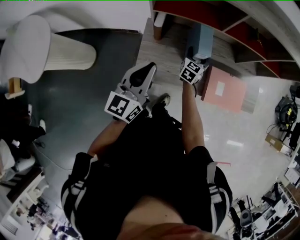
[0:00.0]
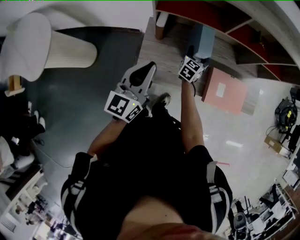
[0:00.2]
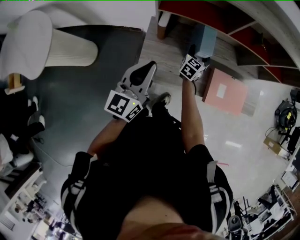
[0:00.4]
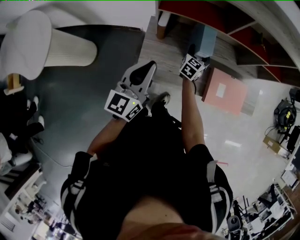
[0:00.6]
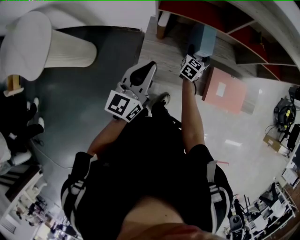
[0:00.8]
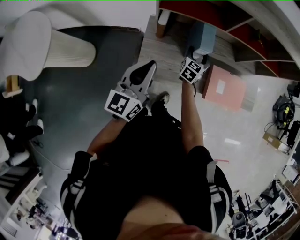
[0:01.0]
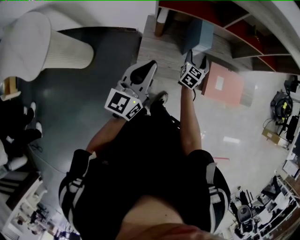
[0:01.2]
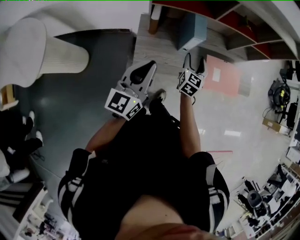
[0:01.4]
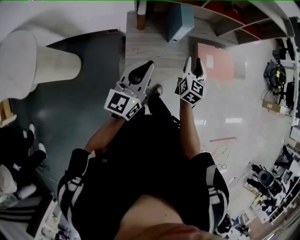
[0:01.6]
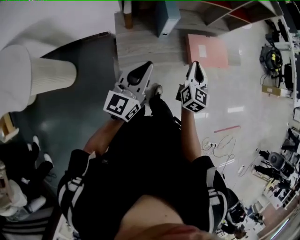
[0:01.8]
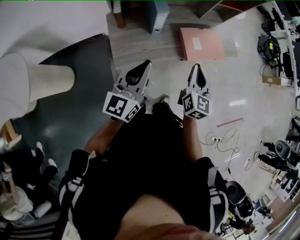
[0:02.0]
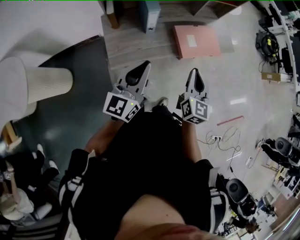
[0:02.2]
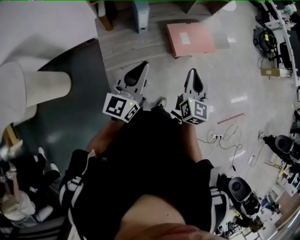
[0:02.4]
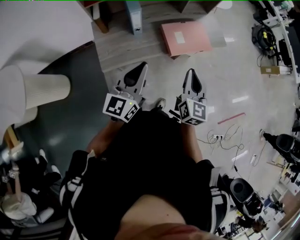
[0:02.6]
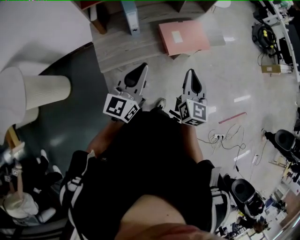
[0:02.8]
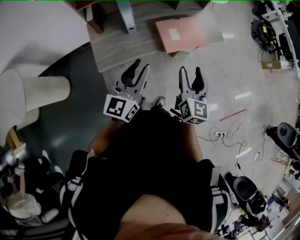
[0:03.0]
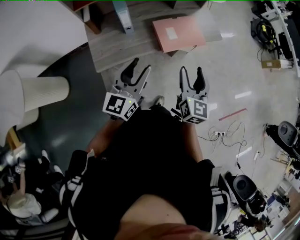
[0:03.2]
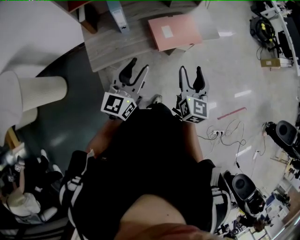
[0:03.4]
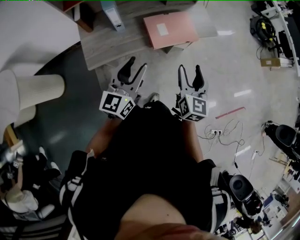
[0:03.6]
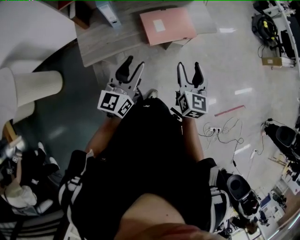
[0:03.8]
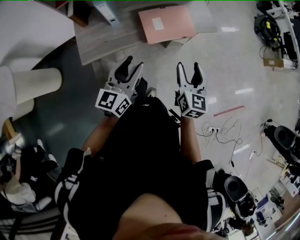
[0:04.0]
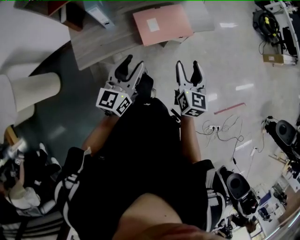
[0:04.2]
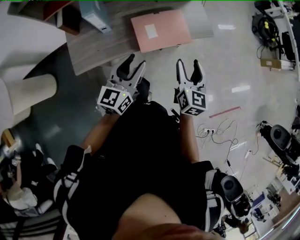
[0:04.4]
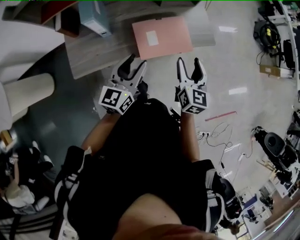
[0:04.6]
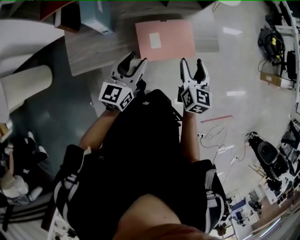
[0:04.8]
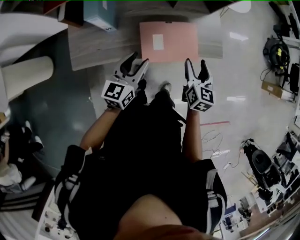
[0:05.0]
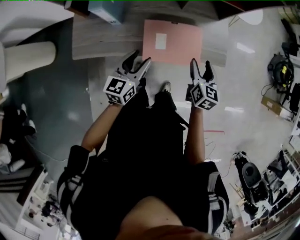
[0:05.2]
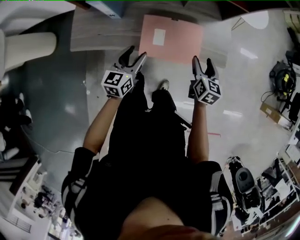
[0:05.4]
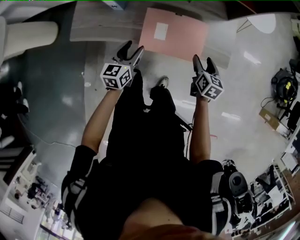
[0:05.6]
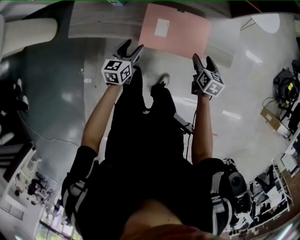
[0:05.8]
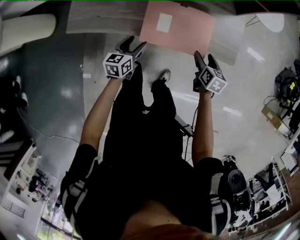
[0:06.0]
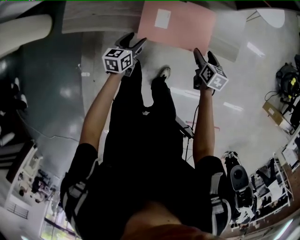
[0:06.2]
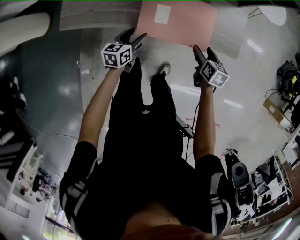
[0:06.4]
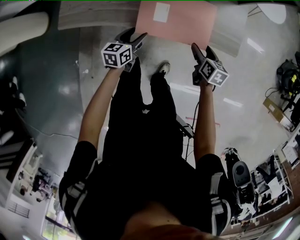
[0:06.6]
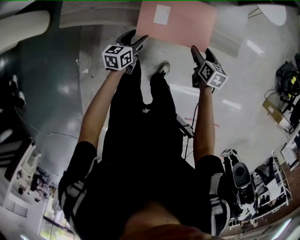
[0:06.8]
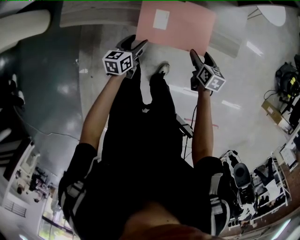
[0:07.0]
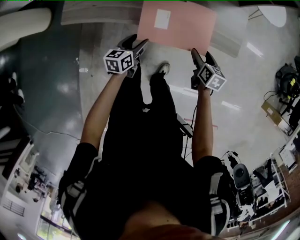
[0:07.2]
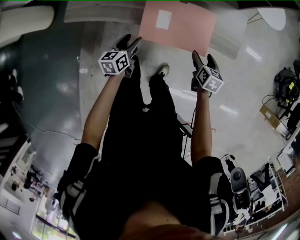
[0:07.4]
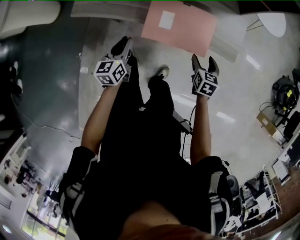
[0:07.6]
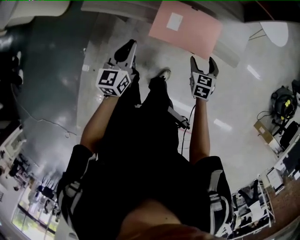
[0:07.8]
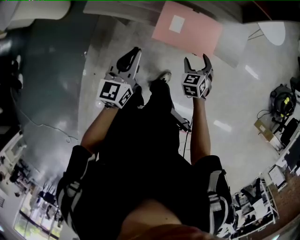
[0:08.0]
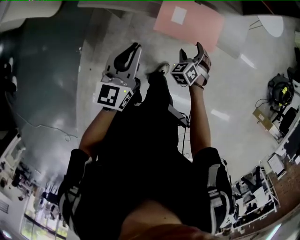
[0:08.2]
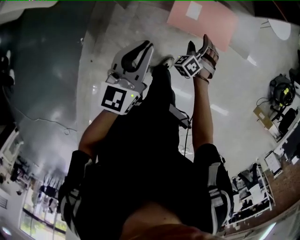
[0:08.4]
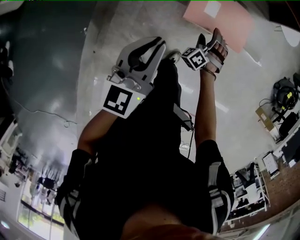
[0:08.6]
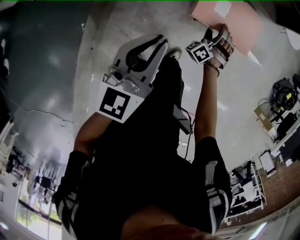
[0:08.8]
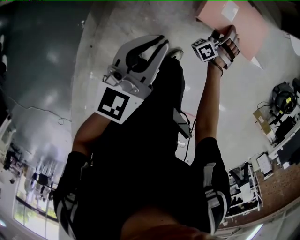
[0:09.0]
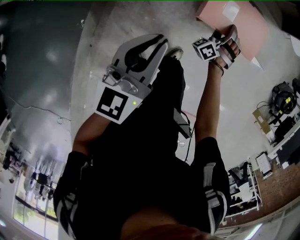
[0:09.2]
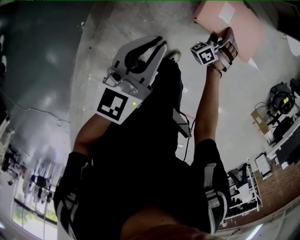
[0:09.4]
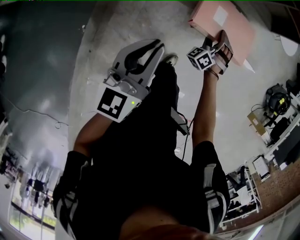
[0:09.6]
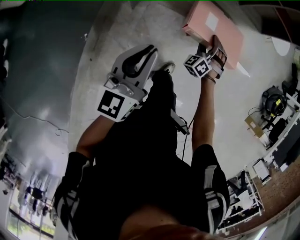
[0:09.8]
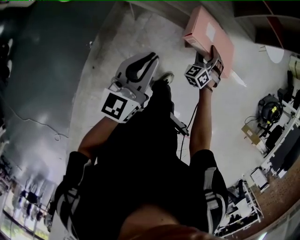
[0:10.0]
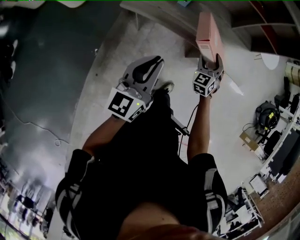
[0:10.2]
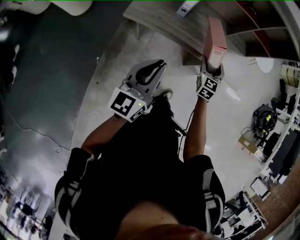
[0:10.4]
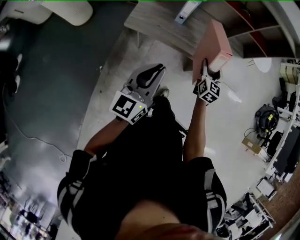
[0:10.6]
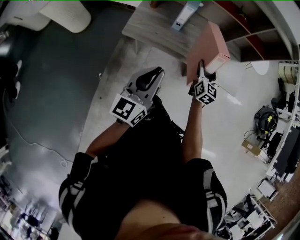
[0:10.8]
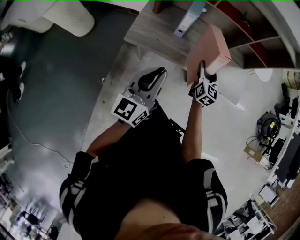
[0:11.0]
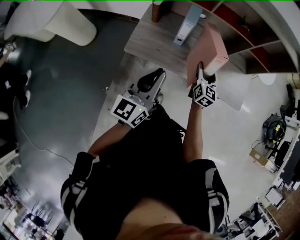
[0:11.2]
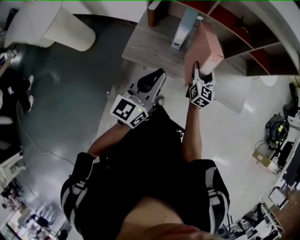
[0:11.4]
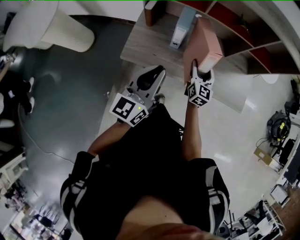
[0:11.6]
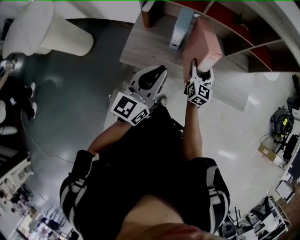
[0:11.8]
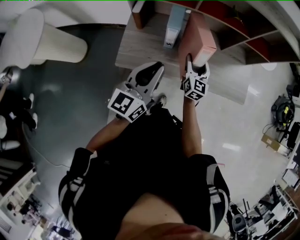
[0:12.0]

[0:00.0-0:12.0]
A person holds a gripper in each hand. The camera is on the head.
0.0 to 1.6 s: The left gripper moves backward, some 5 cm. The right gripper shifts some 20 cm backward and upward, and closes.
1.6 to 3.0 s: The left gripper heads to the right, covering some 20 cm; the right gripper goes some 25 cm to the right, backward and upward, and closes, then reopens.
3.0 to 4.4 s: Both grippers move to the right, forward and downward, roughly 15 cm.
4.4 to 6.0 s: The two grippers go some 25 cm downward. The right gripper rotates approximately 40 degrees. Meanwhile the left gripper turns by approximately 40 degrees.
6.0 to 7.6 s: The left gripper moves backward and upward, approximately 10 cm, and closes.
7.6 to 9.0 s: The right gripper heads to the left and downward, covering about 15 cm, and rolls counterclockwise, seen from behind, by some 80 degrees. Meanwhile the left gripper moves upward and backward, about 15 cm, and changes its angle by approximately 20 degrees.
9.0 to 10.4 s: The left gripper goes roughly 15 cm upward. The right gripper shifts approximately 25 cm upward, and twists roughly 60 degrees clockwise, seen from behind.
10.4 to 12.0 s: The right gripper is displaced forward and to the left by some 20 cm, and rotates roughly 30 degrees, while the left gripper is displaced forward by approximately 20 cm.

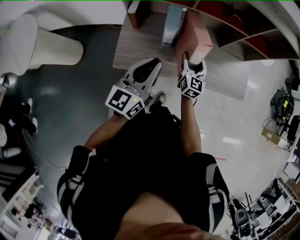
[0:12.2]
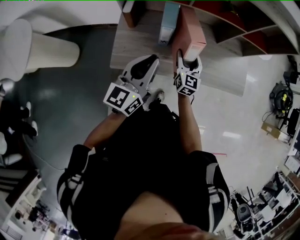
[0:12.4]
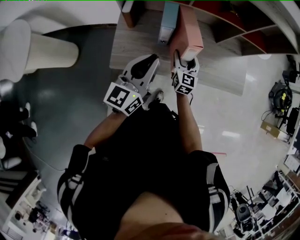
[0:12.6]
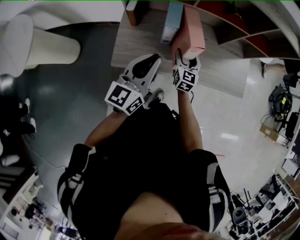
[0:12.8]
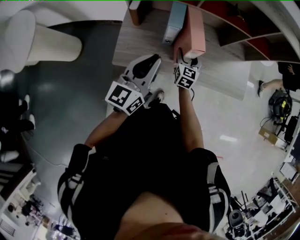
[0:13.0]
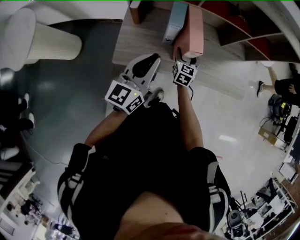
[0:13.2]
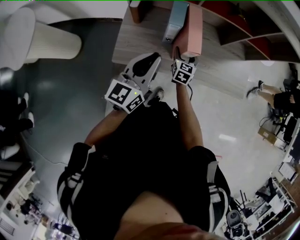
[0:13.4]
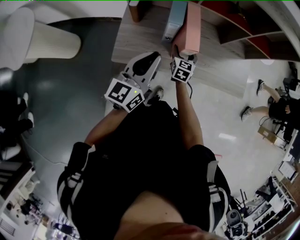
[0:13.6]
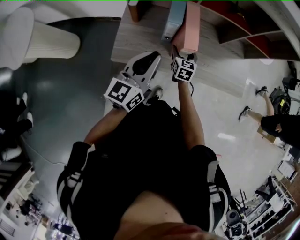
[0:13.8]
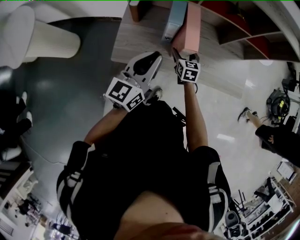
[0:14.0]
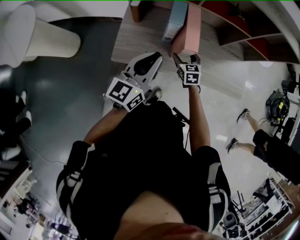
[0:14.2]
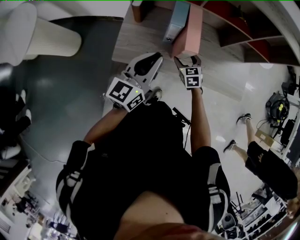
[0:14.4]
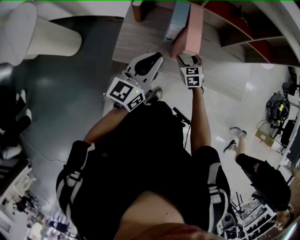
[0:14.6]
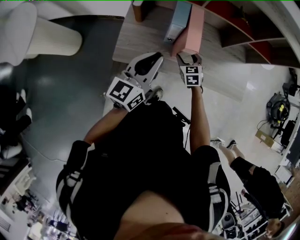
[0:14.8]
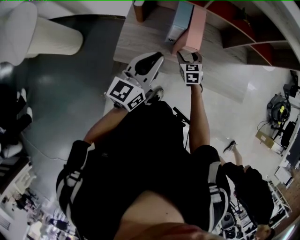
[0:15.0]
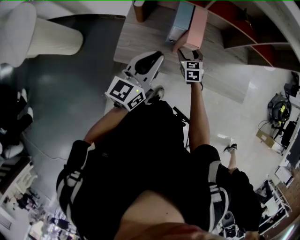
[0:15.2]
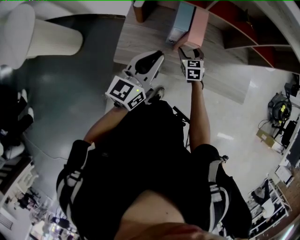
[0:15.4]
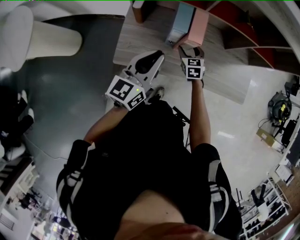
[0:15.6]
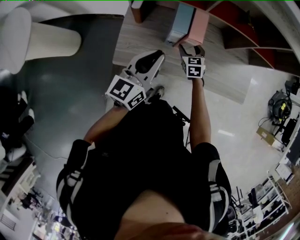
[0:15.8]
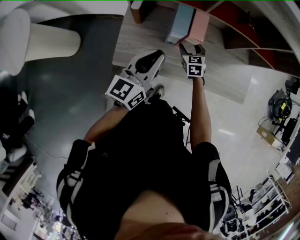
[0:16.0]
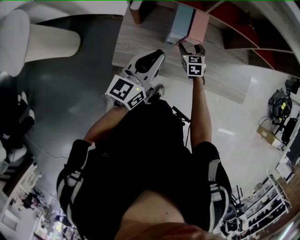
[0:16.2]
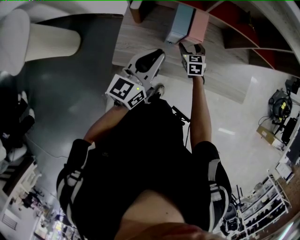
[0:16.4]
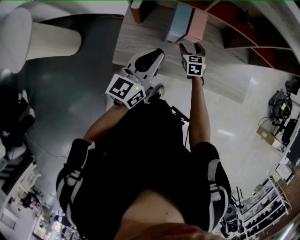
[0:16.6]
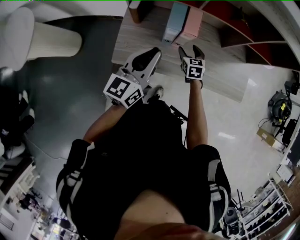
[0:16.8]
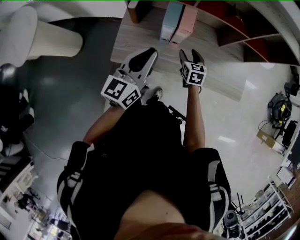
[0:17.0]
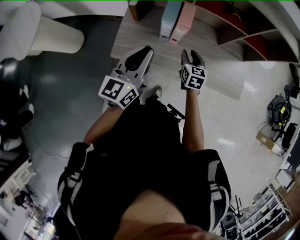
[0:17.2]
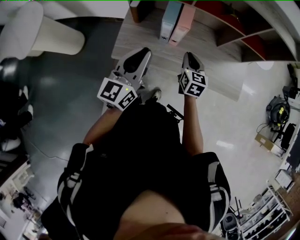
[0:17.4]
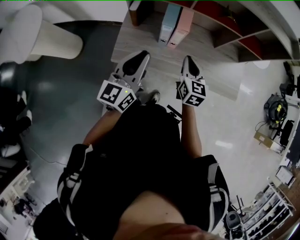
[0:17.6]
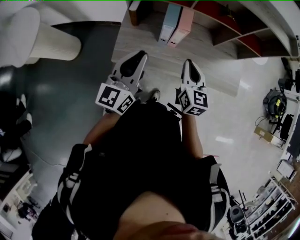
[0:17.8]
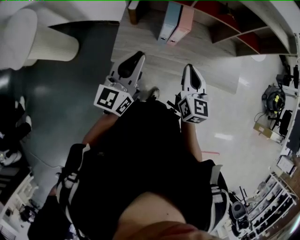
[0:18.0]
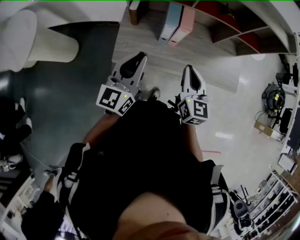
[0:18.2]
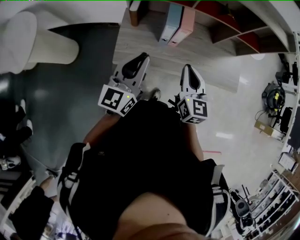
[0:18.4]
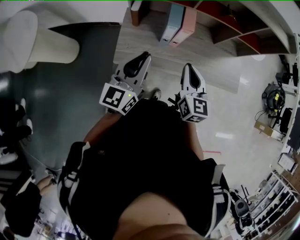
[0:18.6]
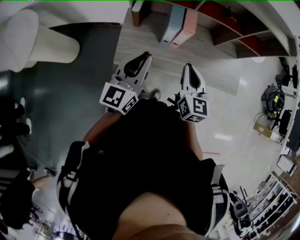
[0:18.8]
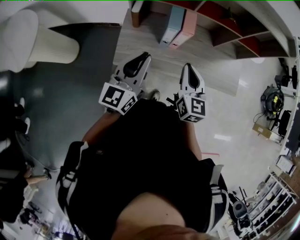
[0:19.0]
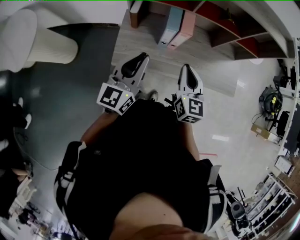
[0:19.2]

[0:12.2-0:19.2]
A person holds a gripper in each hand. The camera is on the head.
12.2 to 13.6 s: The right gripper moves downward, approximately 10 cm.
13.6 to 15.0 s: The right gripper turns by roughly 30 degrees.
15.0 to 16.4 s: Both grippers travel together forward, approximately 5 cm.
16.4 to 17.8 s: The left gripper travels backward and upward by roughly 10 cm, while the right gripper heads upward and backward, covering about 30 cm, changes its angle by about 30 degrees, and closes up.
17.8 to 19.2 s: The grippers make only small movements.

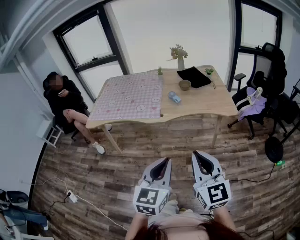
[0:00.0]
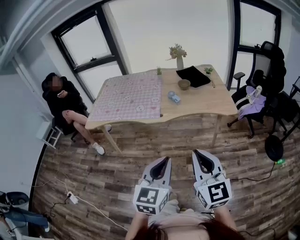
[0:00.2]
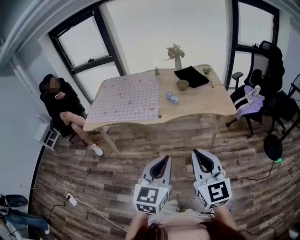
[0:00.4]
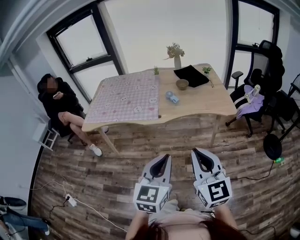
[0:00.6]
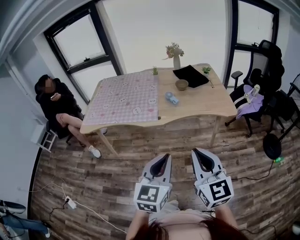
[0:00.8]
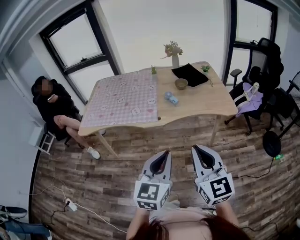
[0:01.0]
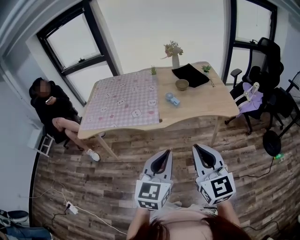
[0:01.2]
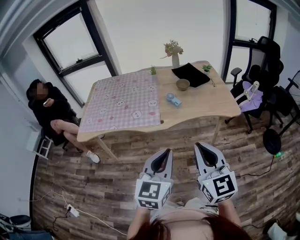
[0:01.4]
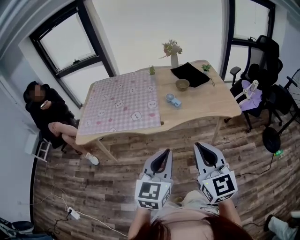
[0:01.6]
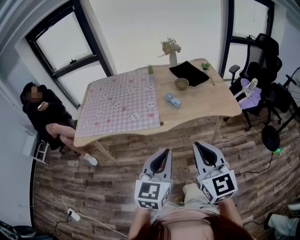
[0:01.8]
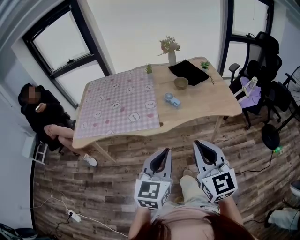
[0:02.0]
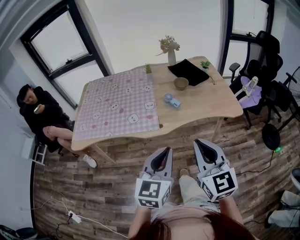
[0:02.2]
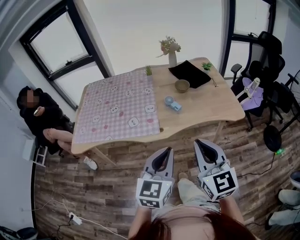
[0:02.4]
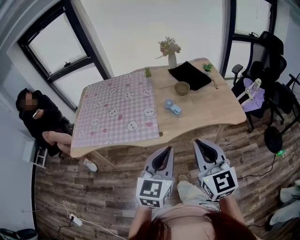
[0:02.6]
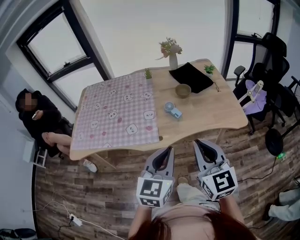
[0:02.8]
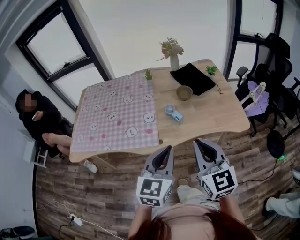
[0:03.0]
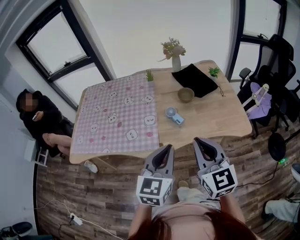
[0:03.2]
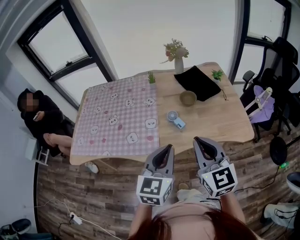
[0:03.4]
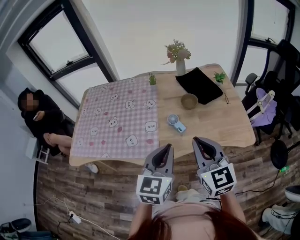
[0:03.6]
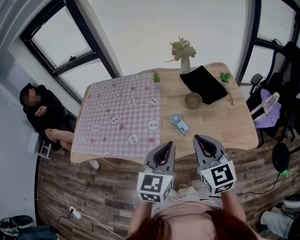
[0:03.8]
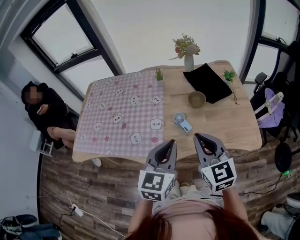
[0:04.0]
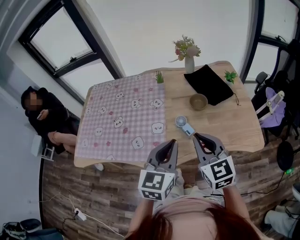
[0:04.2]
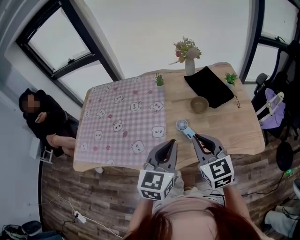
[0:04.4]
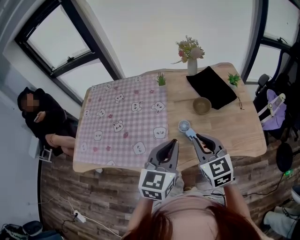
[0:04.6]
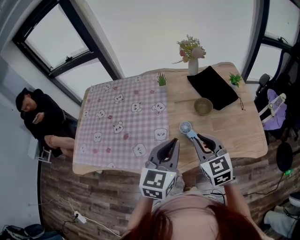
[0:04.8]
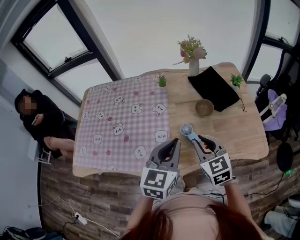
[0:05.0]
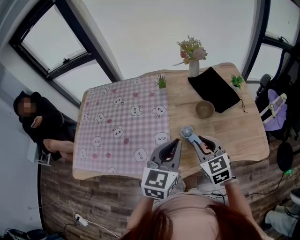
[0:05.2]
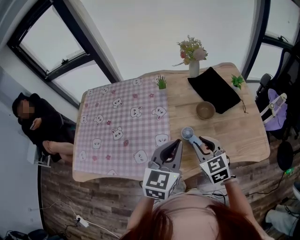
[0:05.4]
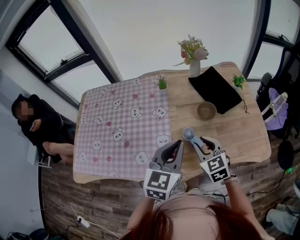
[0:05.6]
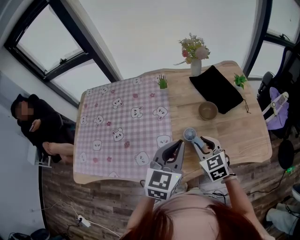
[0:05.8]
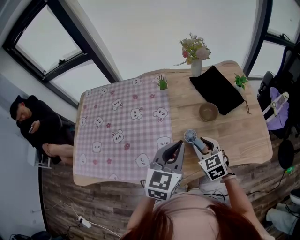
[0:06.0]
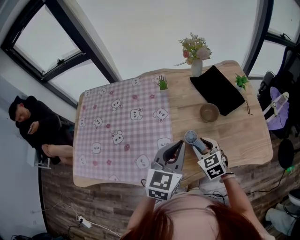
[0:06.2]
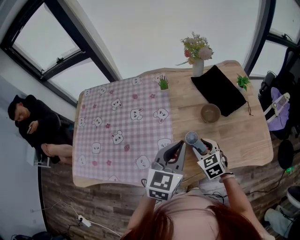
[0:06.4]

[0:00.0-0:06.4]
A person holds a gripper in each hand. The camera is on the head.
0.0 to 1.6 s: Both grippers travel together forward and to the left, approximately 15 cm.
1.6 to 3.2 s: Both grippers travel together forward, approximately 25 cm.
3.2 to 4.8 s: The left gripper shifts roughly 20 cm forward. Meanwhile the right gripper shifts approximately 20 cm forward and downward.
4.8 to 6.4 s: The left gripper goes approximately 10 cm forward. Meanwhile the right gripper moves downward and forward, about 20 cm, swivels approximately 20 degrees, and opens its fingers.
